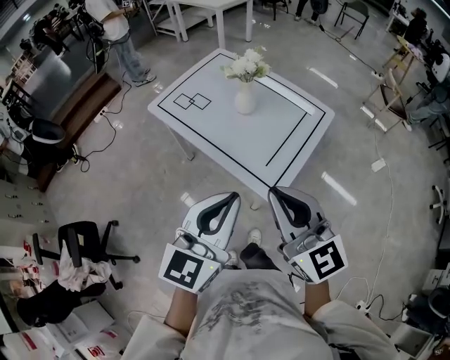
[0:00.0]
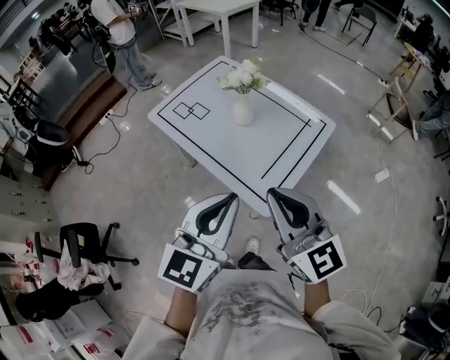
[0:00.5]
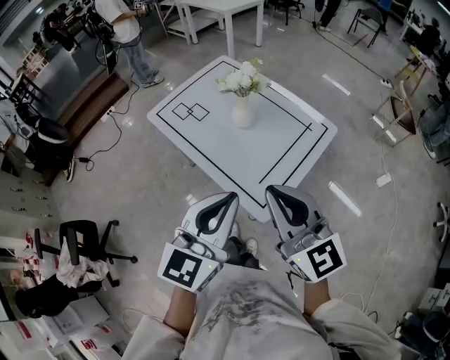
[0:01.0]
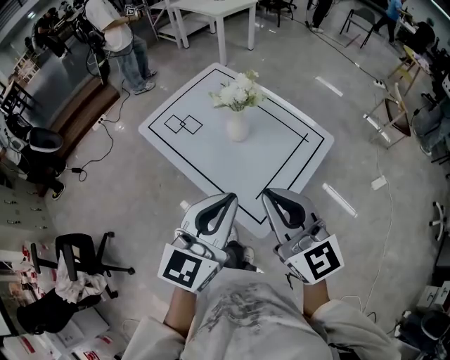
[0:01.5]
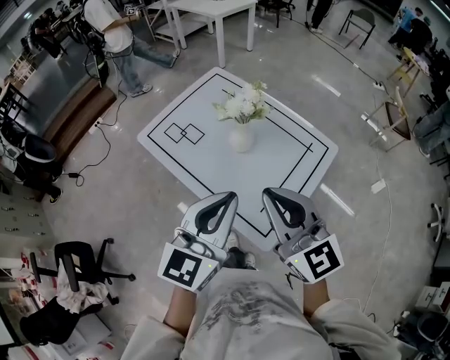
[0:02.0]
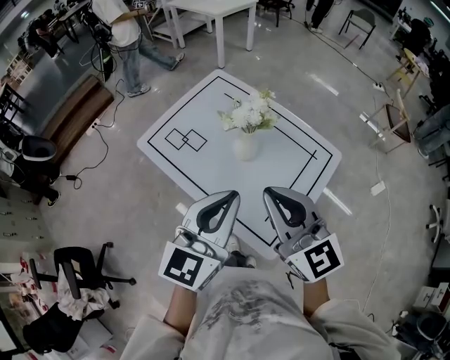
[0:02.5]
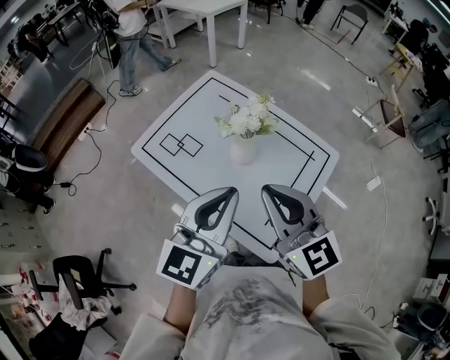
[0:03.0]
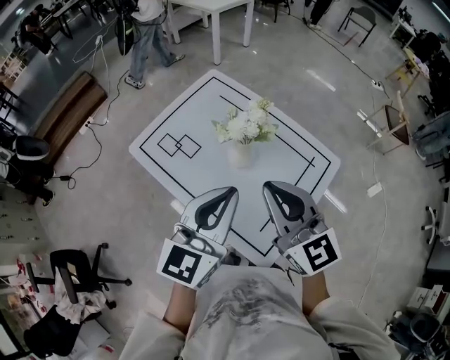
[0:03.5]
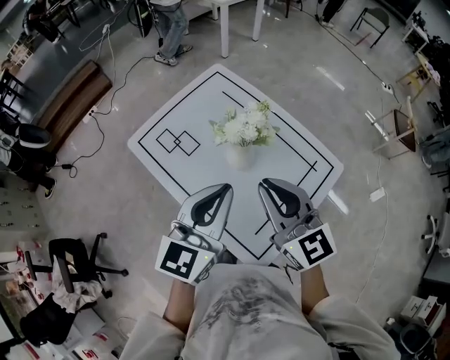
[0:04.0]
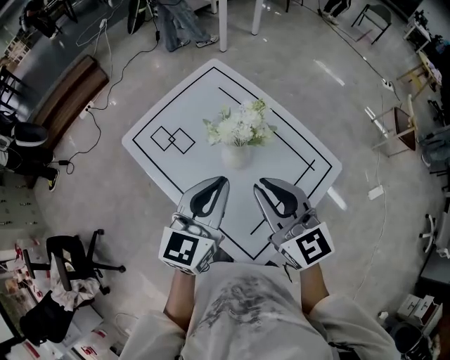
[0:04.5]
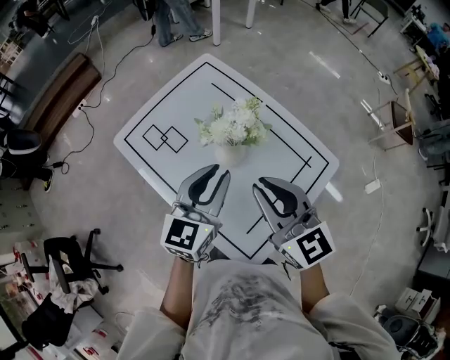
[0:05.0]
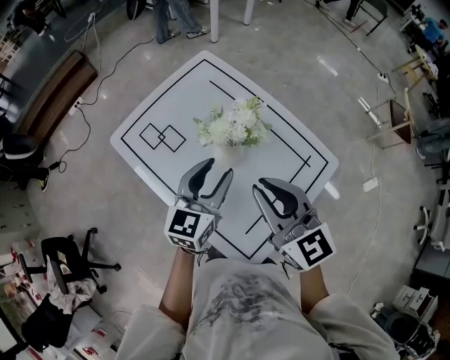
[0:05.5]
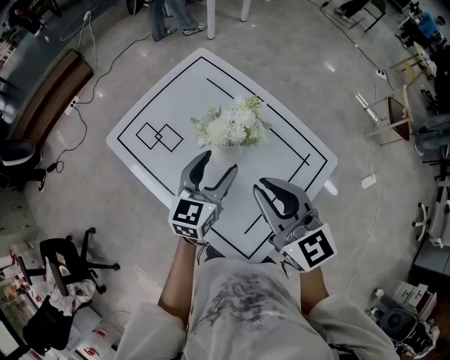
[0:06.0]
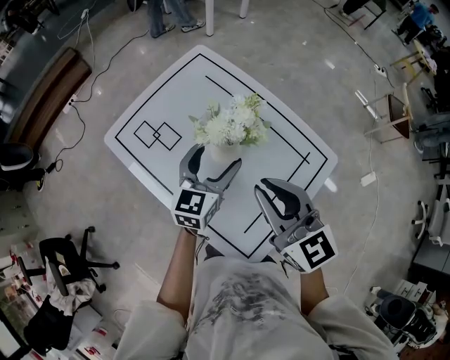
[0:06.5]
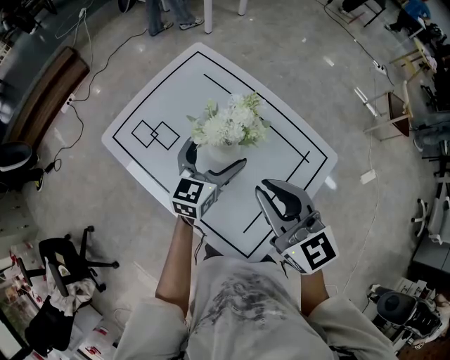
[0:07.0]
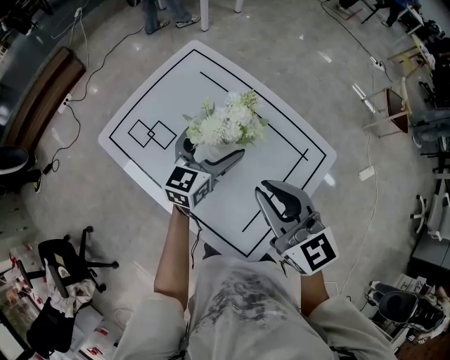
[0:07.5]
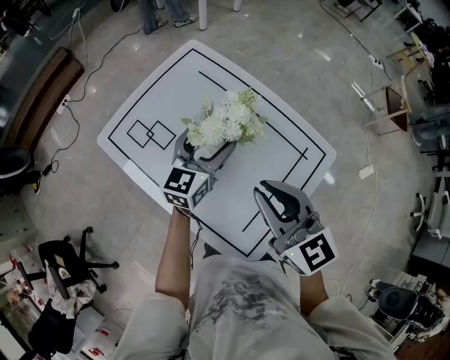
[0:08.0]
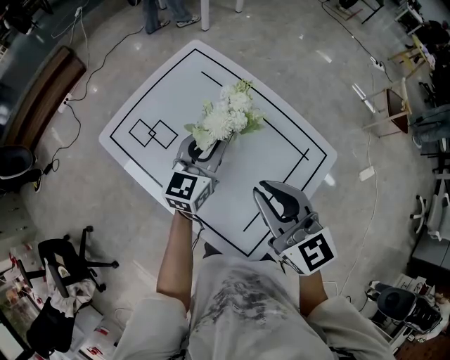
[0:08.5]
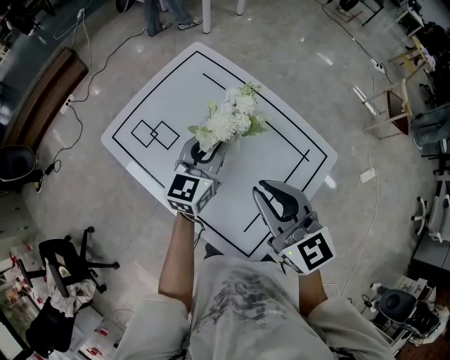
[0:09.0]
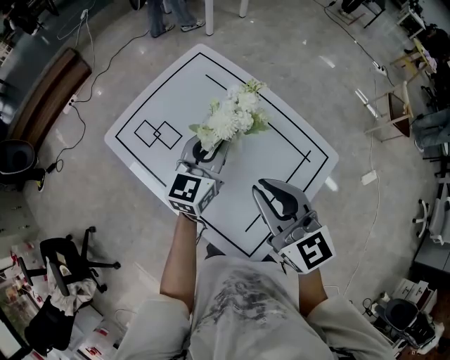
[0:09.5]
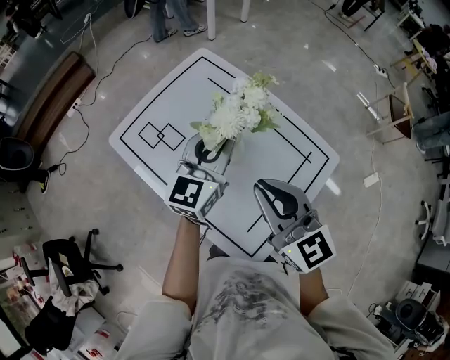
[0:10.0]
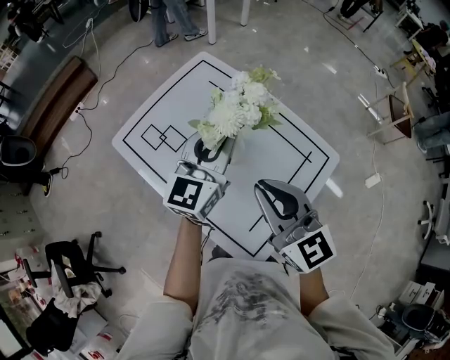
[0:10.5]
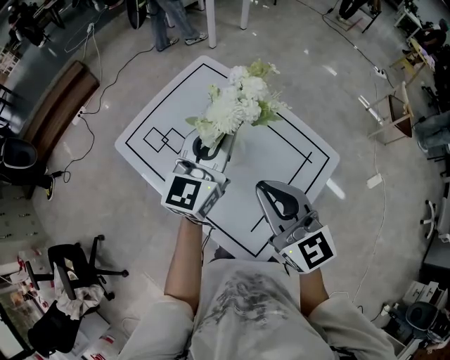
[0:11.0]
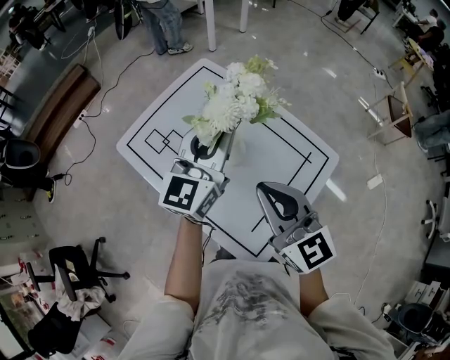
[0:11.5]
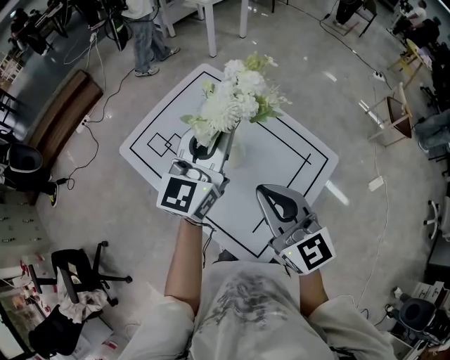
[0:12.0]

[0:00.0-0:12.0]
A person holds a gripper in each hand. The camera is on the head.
0:00.0 to 0:02.0: Both grippers move forward, roughly 20 cm.
0:02.0 to 0:04.0: Both grippers travel together forward, about 15 cm.
0:04.0 to 0:06.0: The left gripper heads downward and forward, covering some 15 cm, and opens its fingers.
0:06.0 to 0:08.0: The left gripper shifts some 5 cm forward.
0:08.0 to 0:10.0: The left gripper is displaced upward by some 10 cm, and closes up.
0:10.0 to 0:12.0: The left gripper travels upward by about 10 cm.

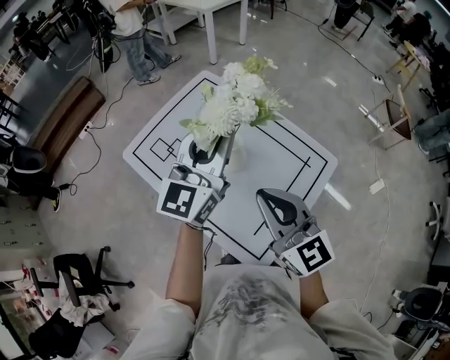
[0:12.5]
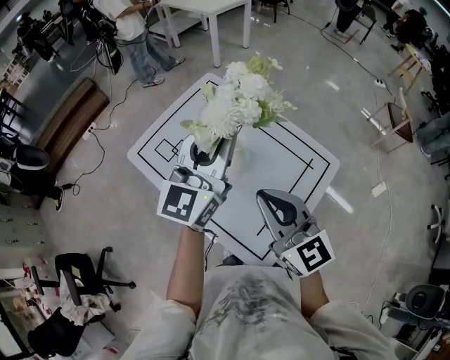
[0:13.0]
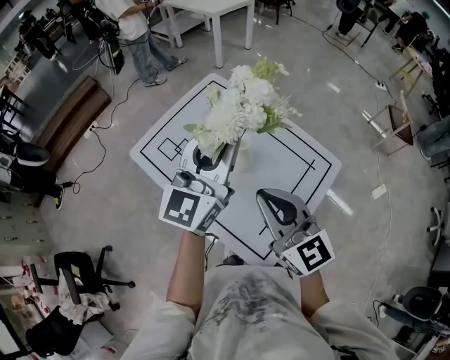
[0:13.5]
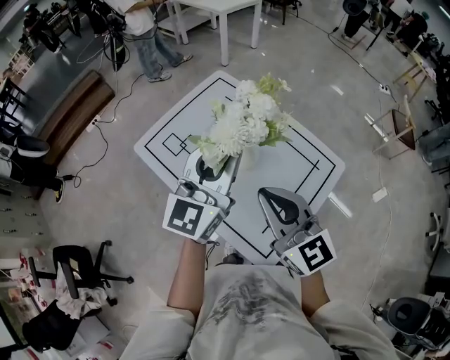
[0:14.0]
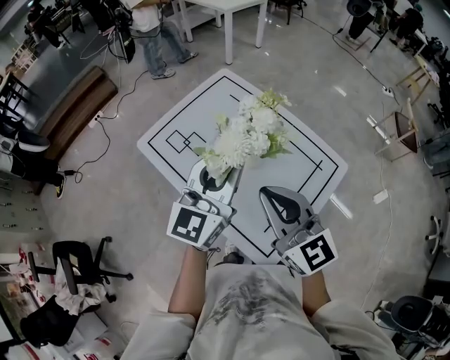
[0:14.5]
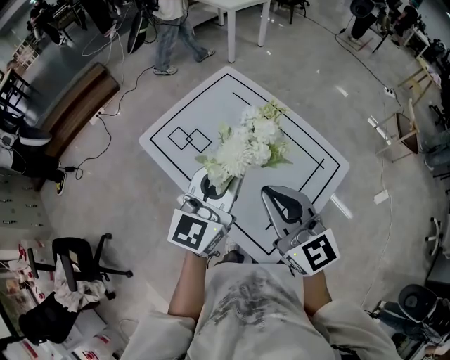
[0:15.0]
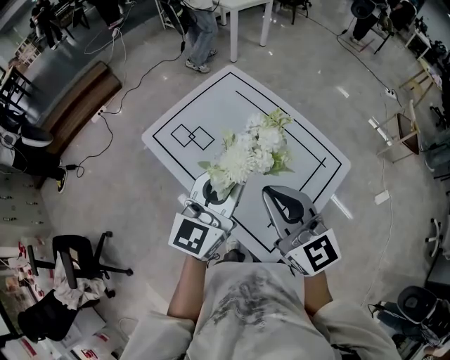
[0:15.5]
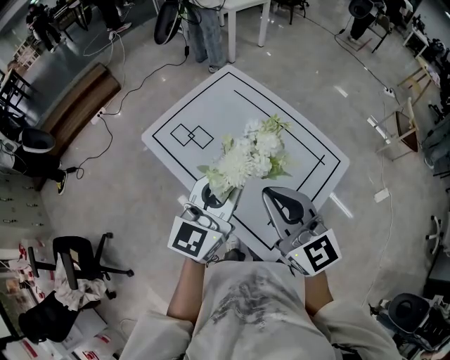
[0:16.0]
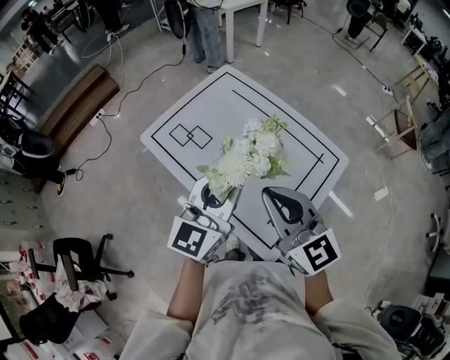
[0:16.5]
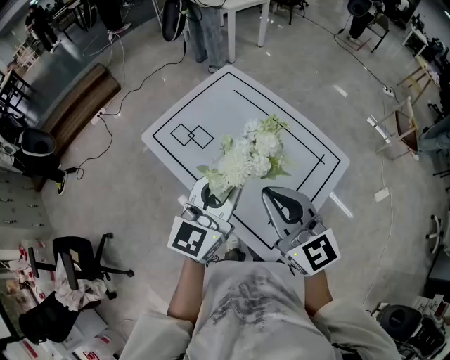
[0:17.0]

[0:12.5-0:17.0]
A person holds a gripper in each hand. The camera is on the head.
0:12.5 to 0:14.5: The left gripper shifts roughly 5 cm backward.
0:14.5 to 0:17.0: The left gripper heads backward, covering some 5 cm.

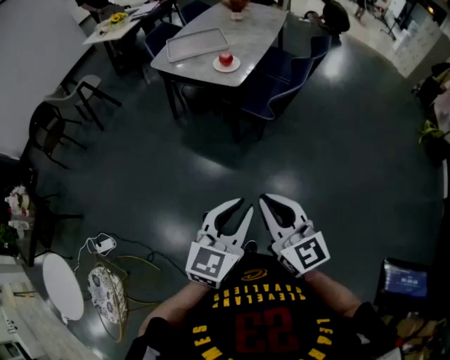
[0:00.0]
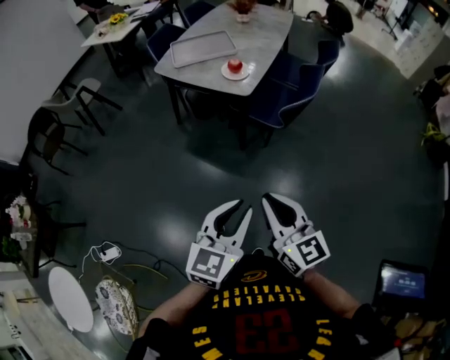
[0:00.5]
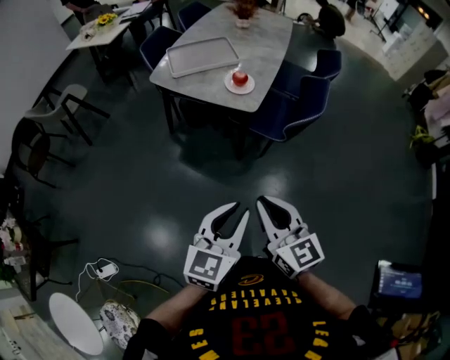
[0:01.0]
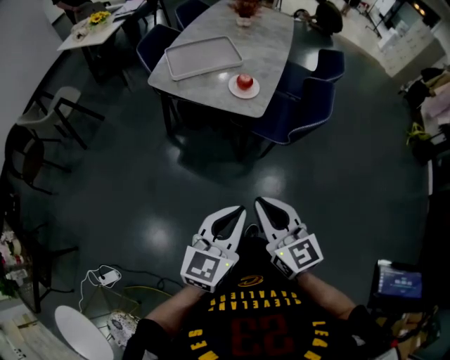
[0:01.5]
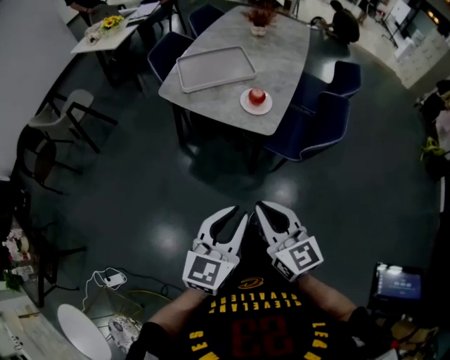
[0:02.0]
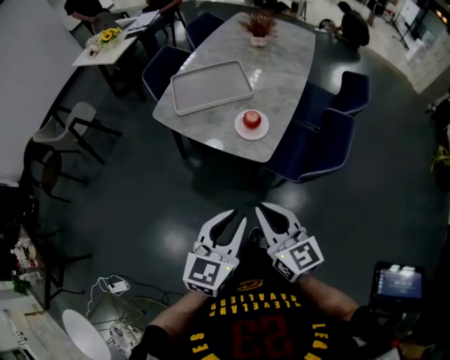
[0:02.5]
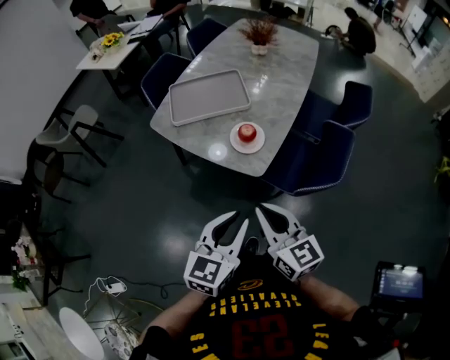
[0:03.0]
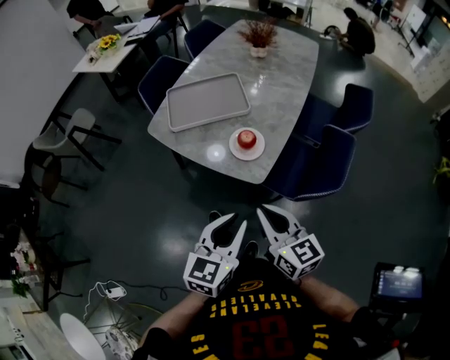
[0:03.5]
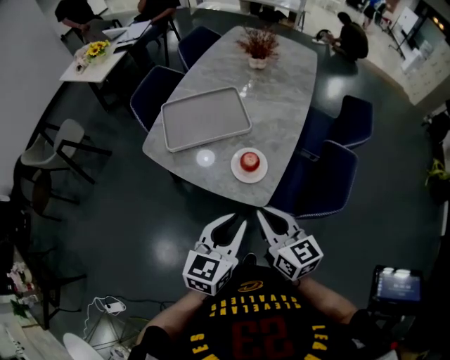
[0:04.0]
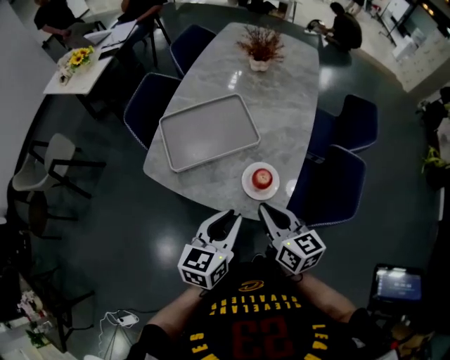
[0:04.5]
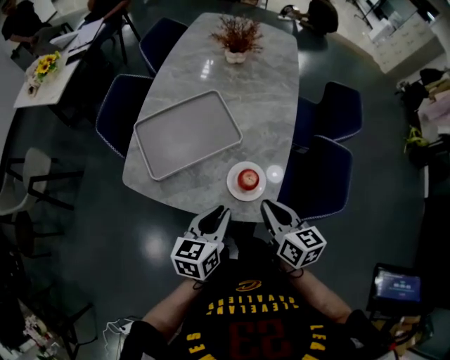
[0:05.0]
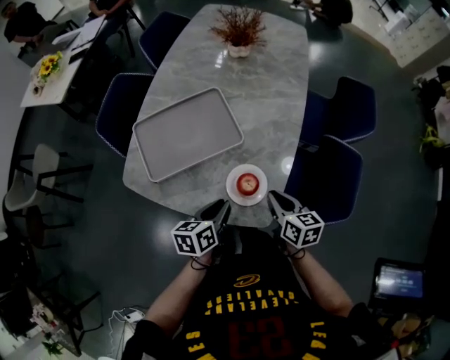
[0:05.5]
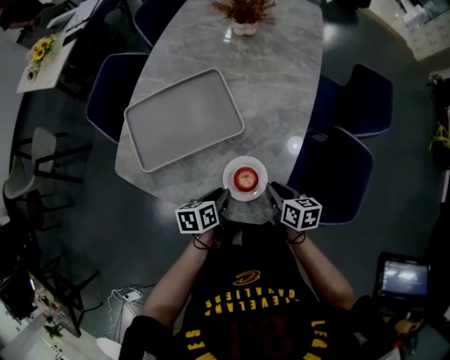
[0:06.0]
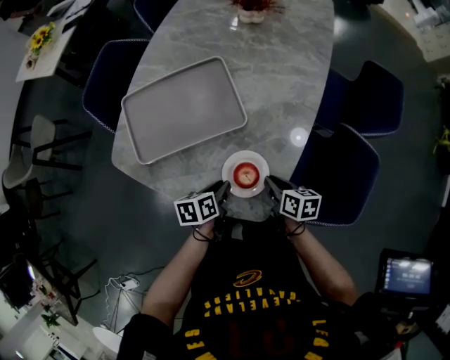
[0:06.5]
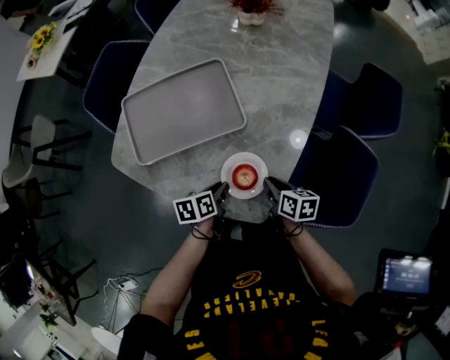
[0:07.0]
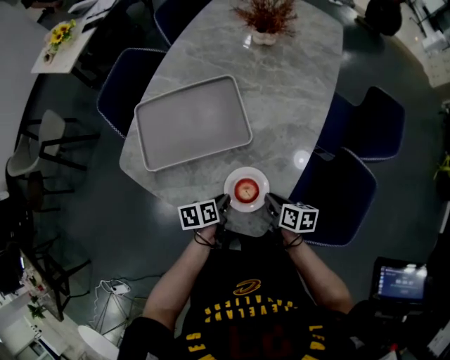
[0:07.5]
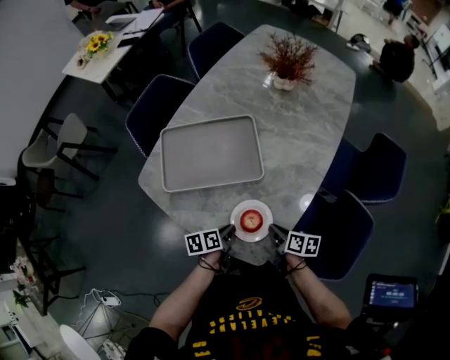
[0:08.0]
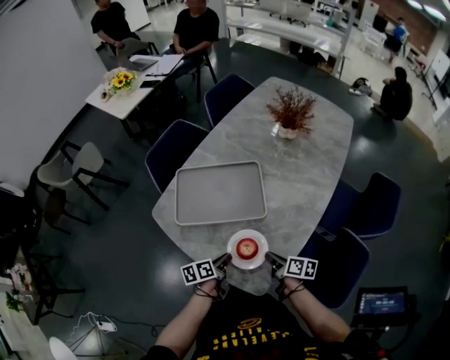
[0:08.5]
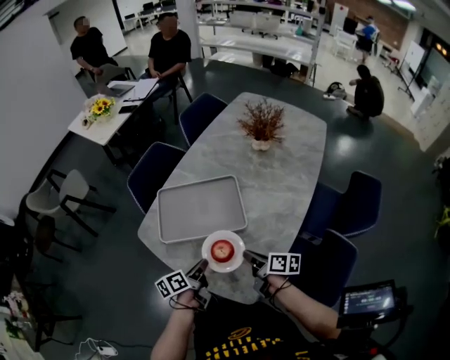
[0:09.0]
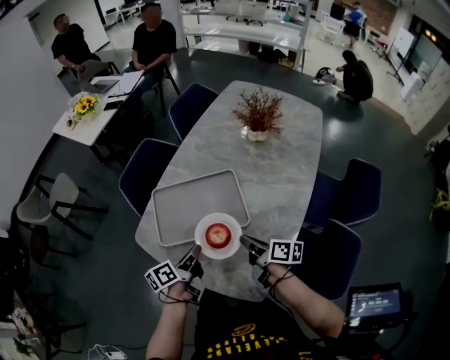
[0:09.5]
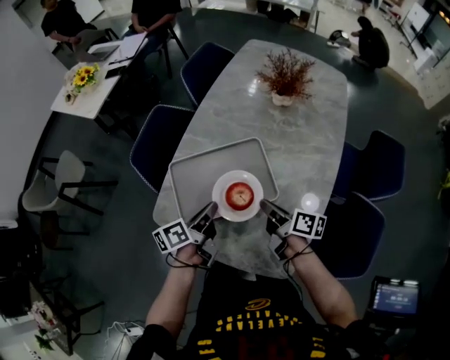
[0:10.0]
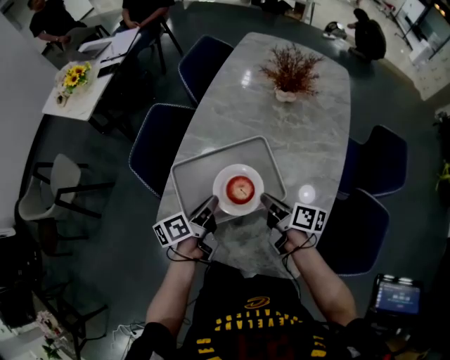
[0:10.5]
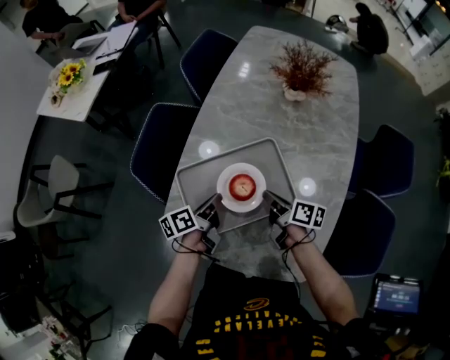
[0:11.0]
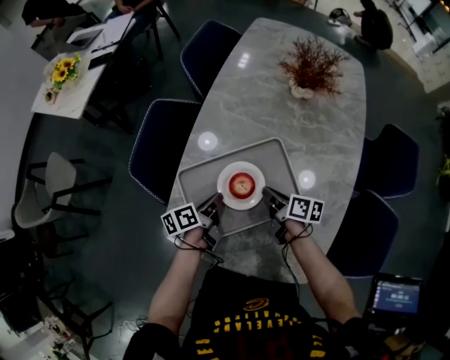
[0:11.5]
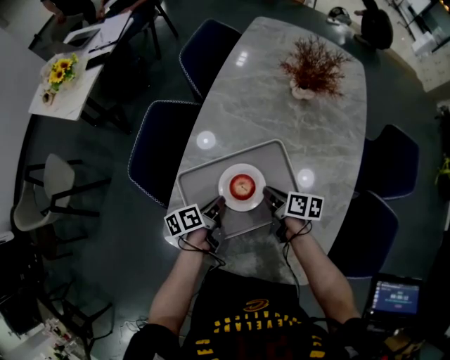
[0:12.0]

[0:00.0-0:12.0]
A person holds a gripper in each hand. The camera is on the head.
0:00.0 to 0:02.0: The grippers both shift forward and to the left by approximately 35 cm.
0:02.0 to 0:04.0: Both grippers move forward, some 30 cm.
0:04.0 to 0:06.0: The grippers both shift downward and forward by about 30 cm. The right gripper rotates approximately 40 degrees; the left gripper rotates approximately 50 degrees.
0:06.0 to 0:08.0: The left gripper turns by about 20 degrees.
0:08.0 to 0:10.0: Both grippers travel together forward, upward and to the left, some 25 cm. The left gripper rotates roughly 20 degrees. The right gripper changes its angle by about 20 degrees.
0:10.0 to 0:12.0: The right gripper goes some 15 cm downward, forward and to the left, while the left gripper is displaced downward and forward by roughly 15 cm.
